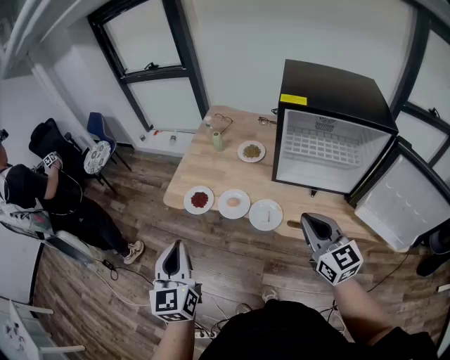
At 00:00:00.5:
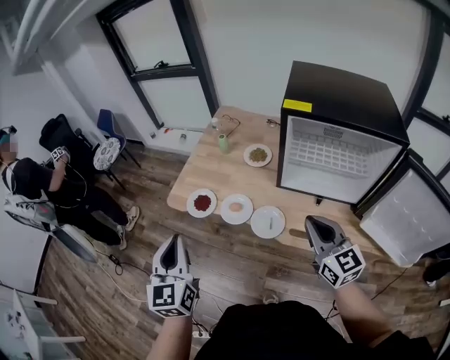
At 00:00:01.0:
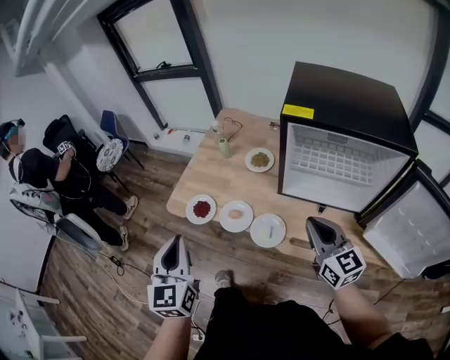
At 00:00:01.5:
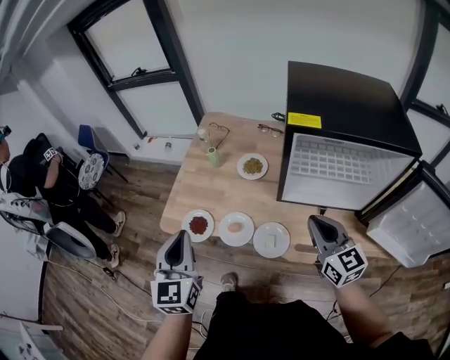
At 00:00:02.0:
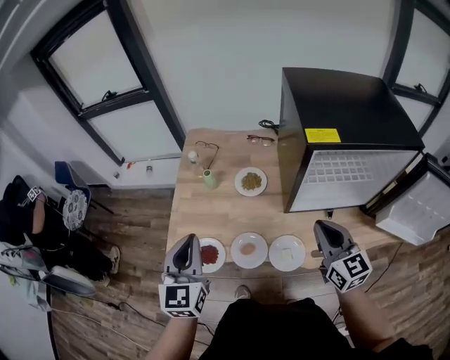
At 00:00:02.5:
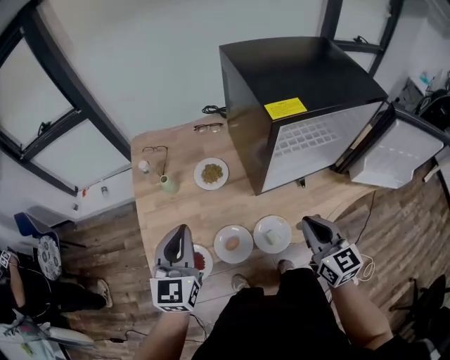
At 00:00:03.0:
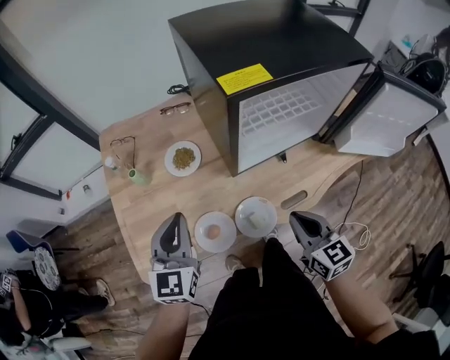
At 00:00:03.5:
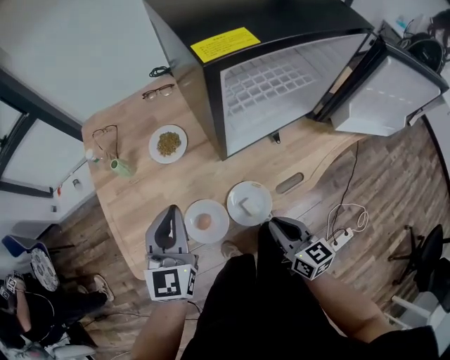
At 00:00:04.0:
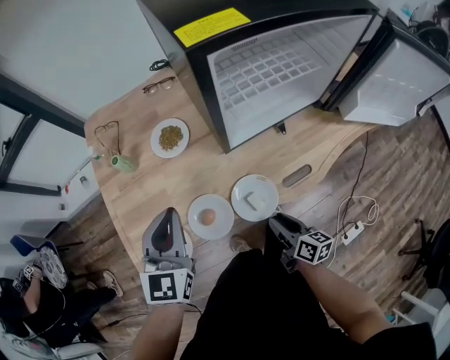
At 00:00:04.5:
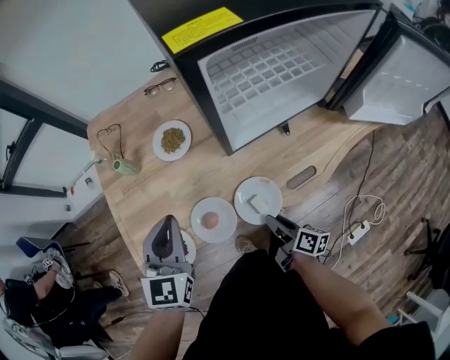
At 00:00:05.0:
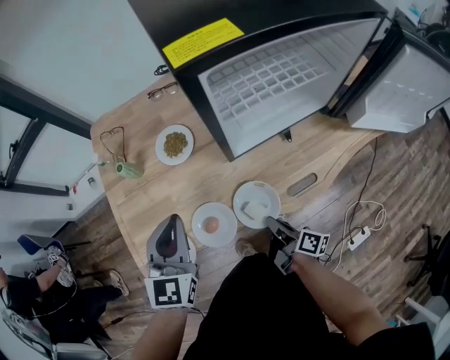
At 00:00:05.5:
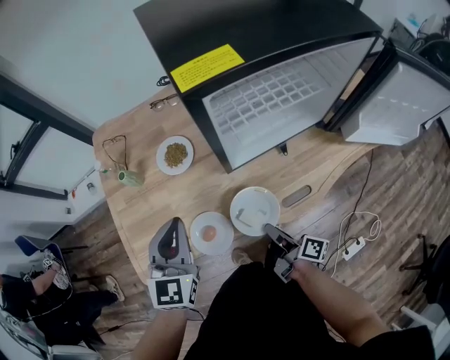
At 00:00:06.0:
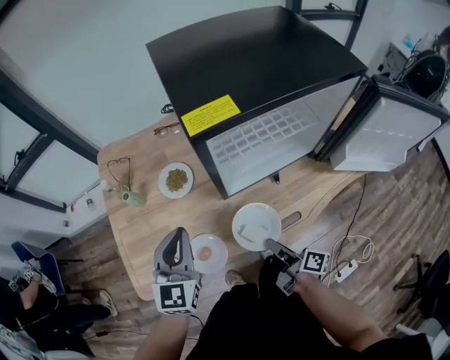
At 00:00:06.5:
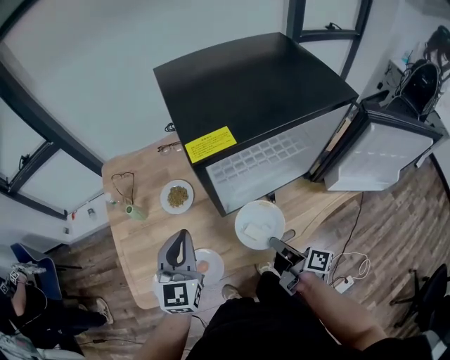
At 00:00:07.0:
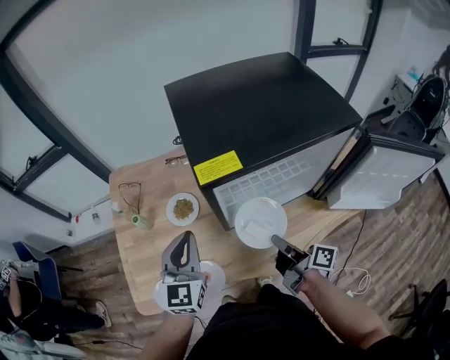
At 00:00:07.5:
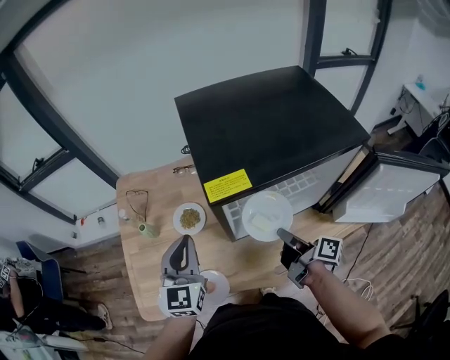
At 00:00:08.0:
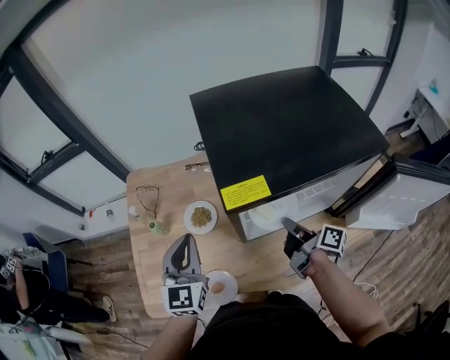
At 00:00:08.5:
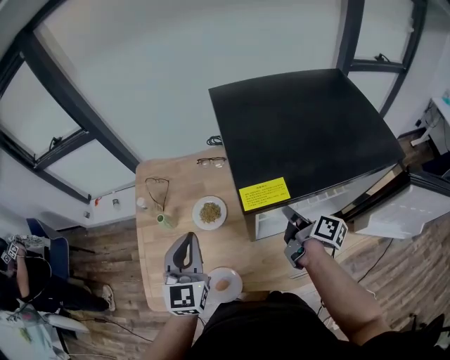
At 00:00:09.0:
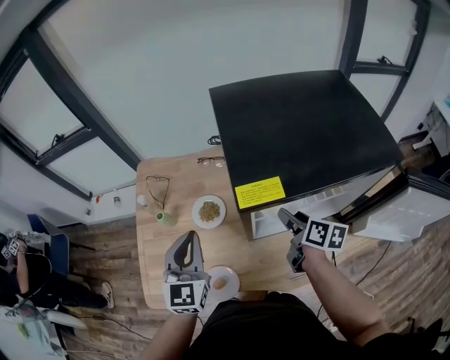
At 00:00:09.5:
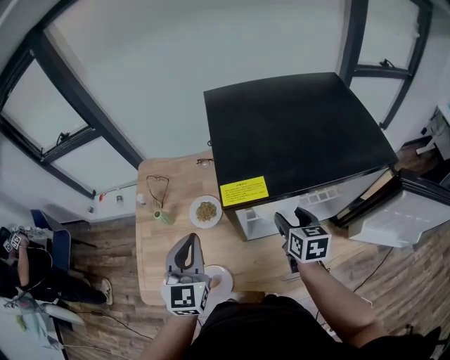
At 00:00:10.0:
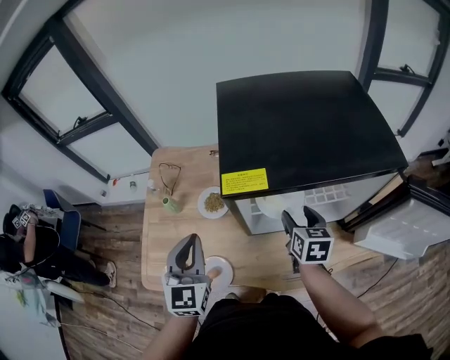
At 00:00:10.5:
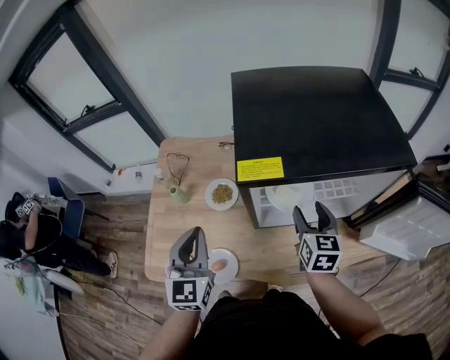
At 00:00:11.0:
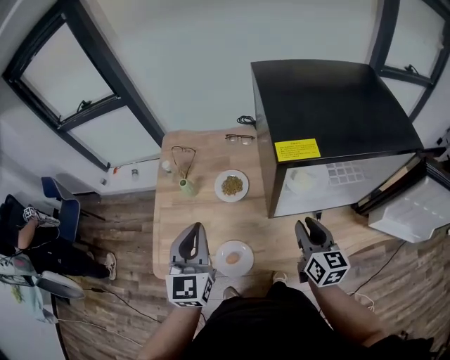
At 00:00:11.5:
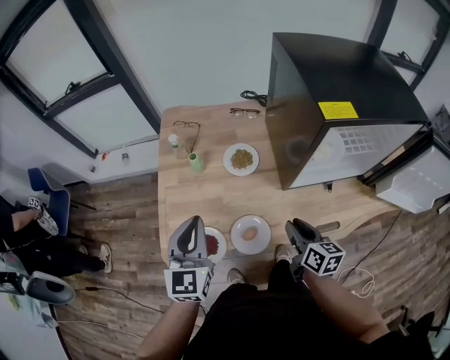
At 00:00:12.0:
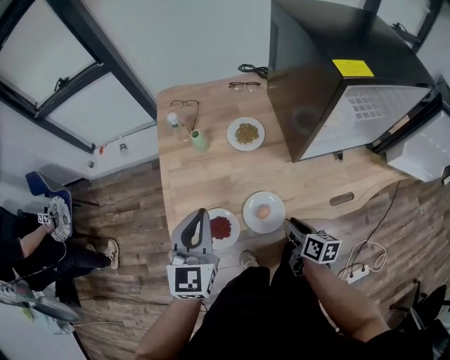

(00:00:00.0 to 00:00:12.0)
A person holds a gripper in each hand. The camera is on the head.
00:00:00.0 - 00:00:02.0: The right gripper shifts some 15 cm forward, and swivels some 20 degrees. The left gripper moves forward, some 30 cm, and swivels about 20 degrees.
00:00:02.0 - 00:00:04.0: The right gripper is displaced downward and backward by some 30 cm, twists approximately 50 degrees clockwise, seen from behind, and opens, while the left gripper travels downward, to the right and forward by roughly 15 cm, and changes its angle by some 30 degrees.
00:00:04.0 - 00:00:06.0: The left gripper shifts by some 5 cm. The right gripper travels upward and forward by some 10 cm, rotates roughly 30 degrees, and closes its fingers.
00:00:06.0 - 00:00:08.0: The right gripper shifts about 25 cm forward and upward, while the left gripper shifts some 10 cm forward and upward.
00:00:08.0 - 00:00:10.0: The left gripper moves backward, about 5 cm; the right gripper rolls counterclockwise, seen from behind, by some 60 degrees, and opens up.
00:00:10.0 - 00:00:12.0: The left gripper goes roughly 20 cm to the left and backward. Meanwhile the right gripper is displaced to the left, backward and downward by some 35 cm, rotates about 30 degrees, and closes its fingers.

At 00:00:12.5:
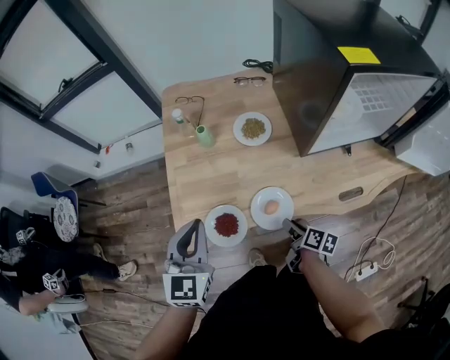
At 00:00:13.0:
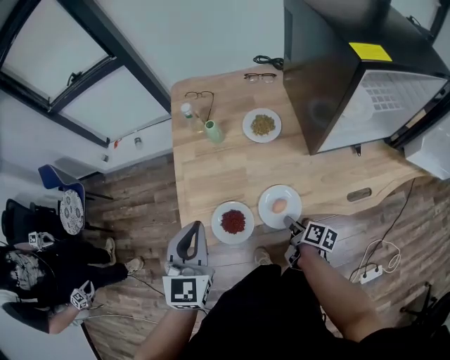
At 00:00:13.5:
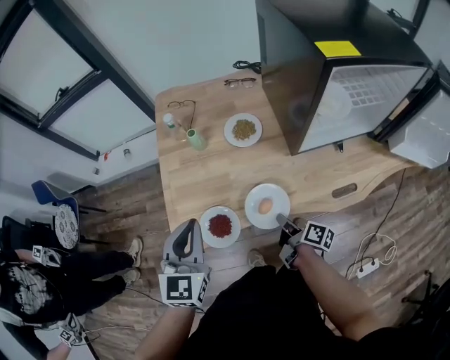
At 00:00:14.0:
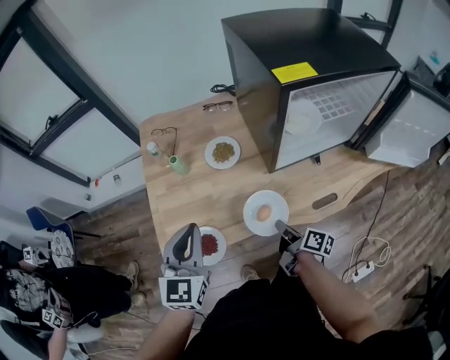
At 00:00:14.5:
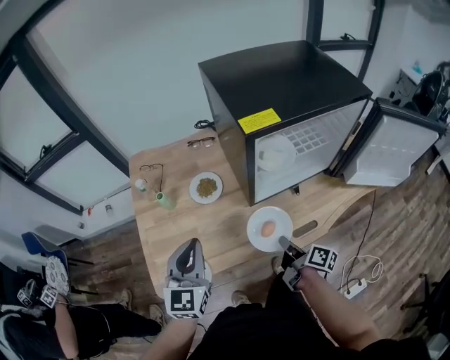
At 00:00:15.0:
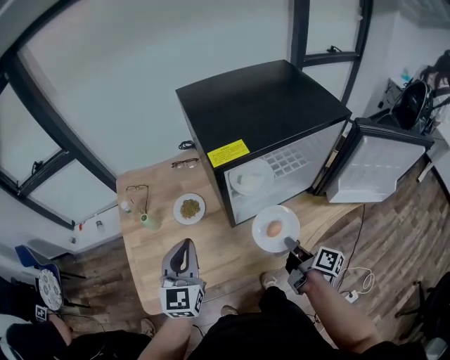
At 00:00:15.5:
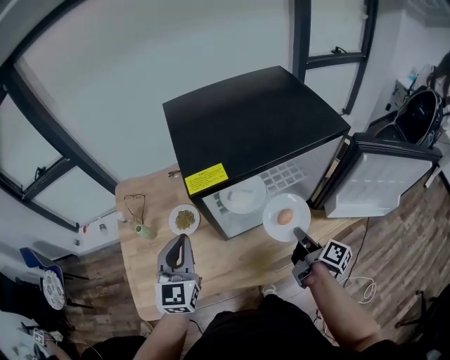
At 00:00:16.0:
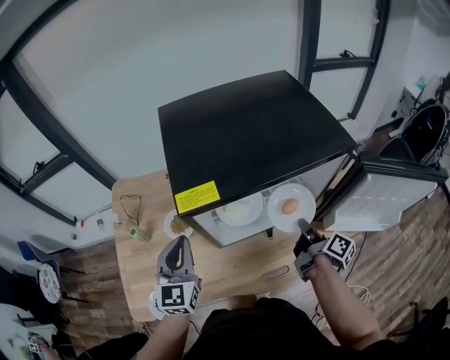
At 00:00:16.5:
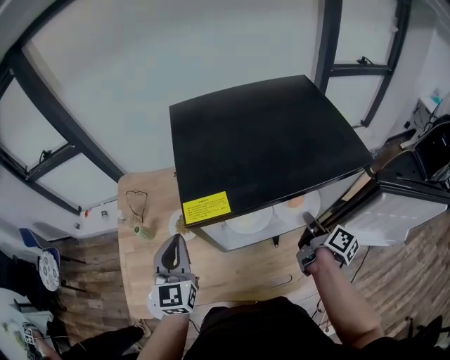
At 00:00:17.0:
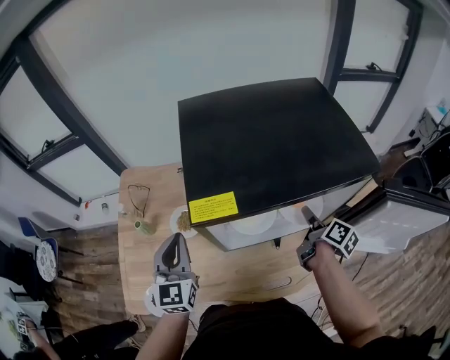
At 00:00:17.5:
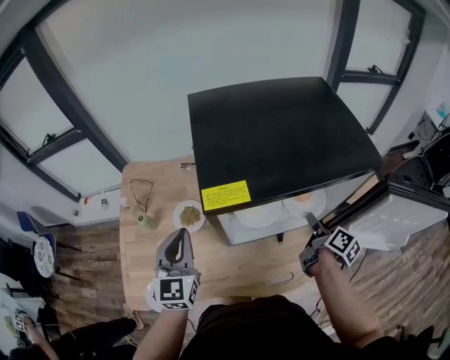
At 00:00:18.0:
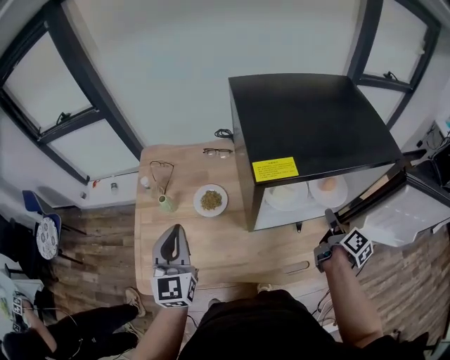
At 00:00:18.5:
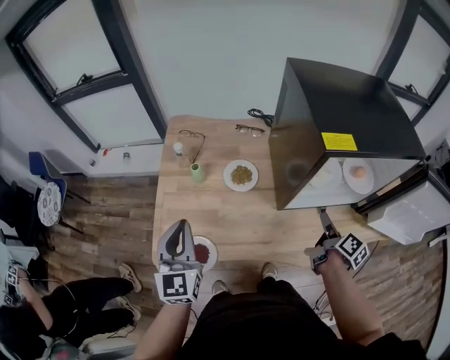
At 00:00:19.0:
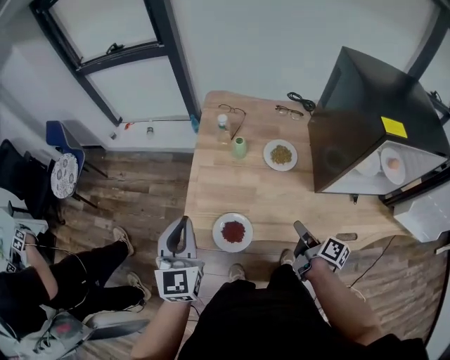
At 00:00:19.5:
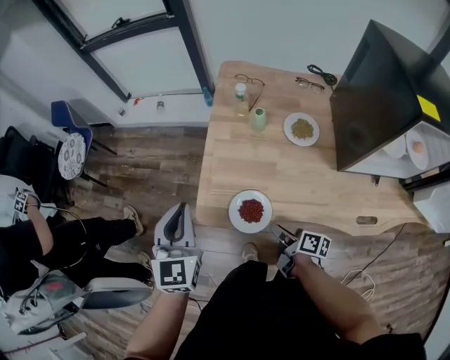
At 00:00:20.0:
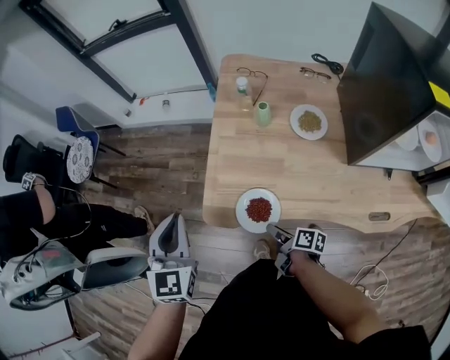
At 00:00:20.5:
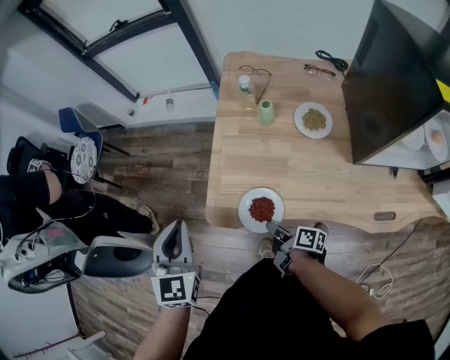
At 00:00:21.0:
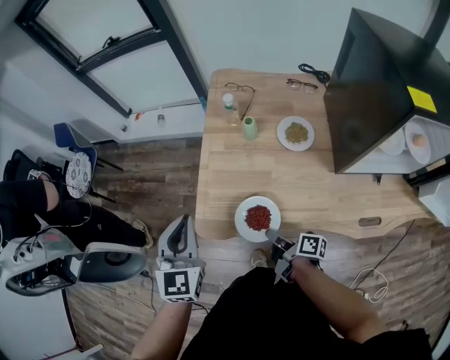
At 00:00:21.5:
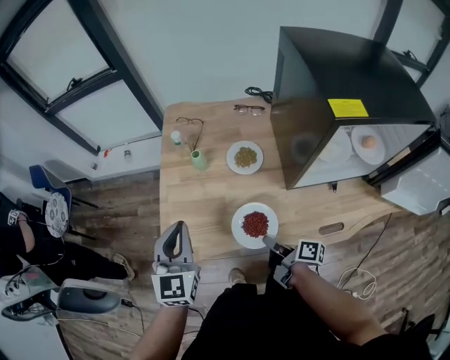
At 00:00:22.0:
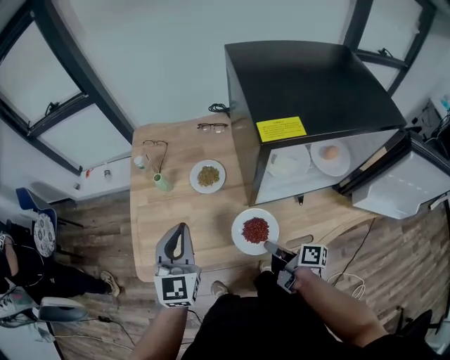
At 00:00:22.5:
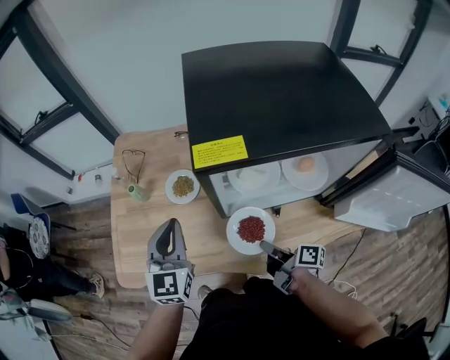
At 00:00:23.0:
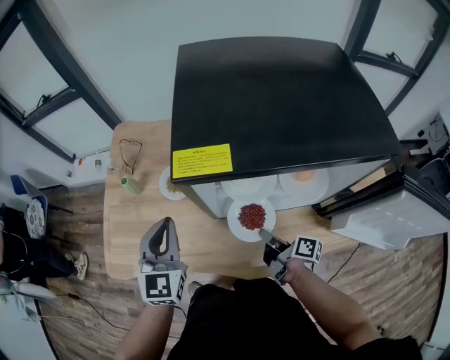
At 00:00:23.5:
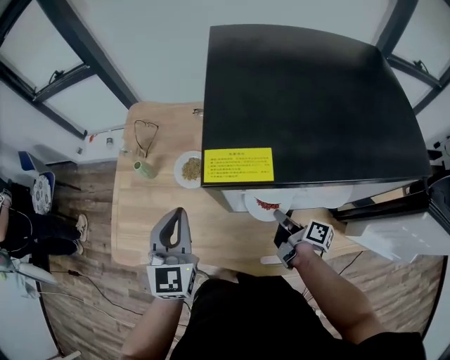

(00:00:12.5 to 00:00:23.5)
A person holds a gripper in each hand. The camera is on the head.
00:00:12.5 - 00:00:14.5: The right gripper goes about 20 cm to the right and upward, swivels roughly 20 degrees, and closes its fingers, while the left gripper shifts some 15 cm to the right.
00:00:14.5 - 00:00:16.0: The right gripper goes some 30 cm to the right, forward and upward. Meanwhile the left gripper heads forward and to the right, covering some 20 cm.
00:00:16.0 - 00:00:18.0: The left gripper is displaced to the left by some 15 cm, while the right gripper moves roughly 10 cm forward and comes back, and opens its fingers.
00:00:18.0 - 00:00:20.0: The left gripper changes place by roughly 35 cm. The right gripper ends up some 60 cm from where it was, and rotates approximately 60 degrees.
00:00:20.0 - 00:00:21.5: The left gripper moves to the right, approximately 20 cm; the right gripper is displaced to the right and upward by about 20 cm, and closes.
00:00:21.5 - 00:00:23.5: Both grippers move to the right, about 30 cm.

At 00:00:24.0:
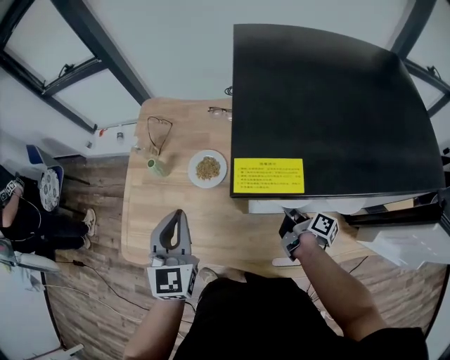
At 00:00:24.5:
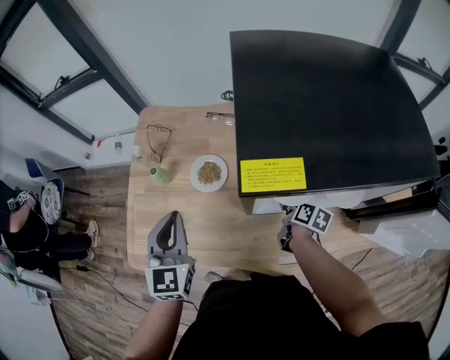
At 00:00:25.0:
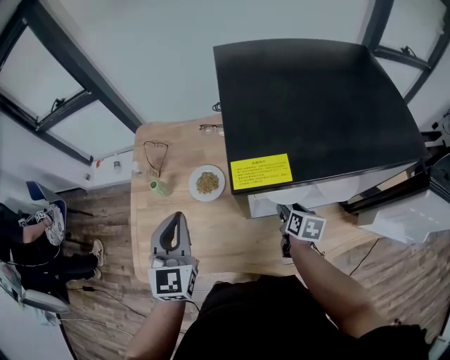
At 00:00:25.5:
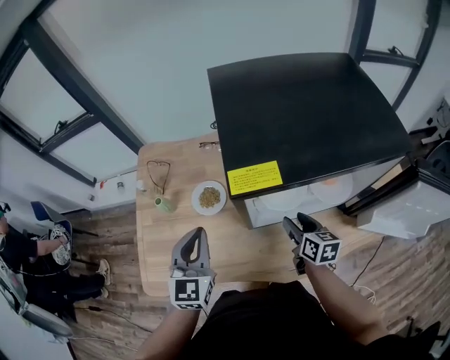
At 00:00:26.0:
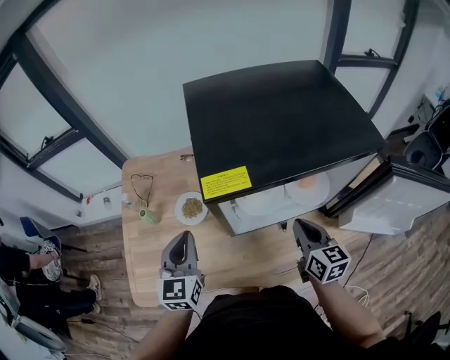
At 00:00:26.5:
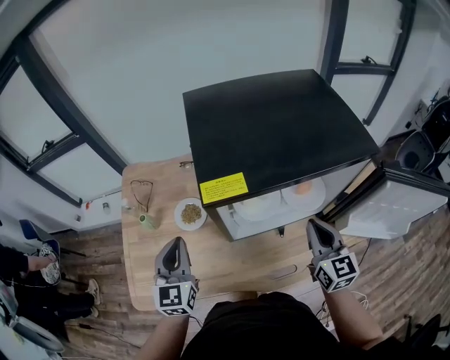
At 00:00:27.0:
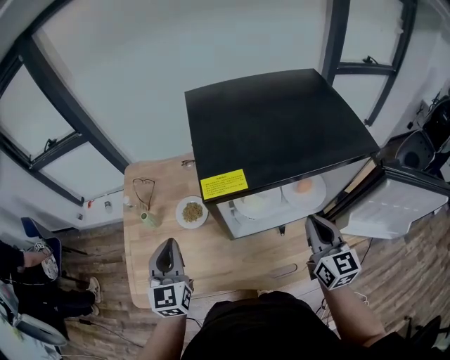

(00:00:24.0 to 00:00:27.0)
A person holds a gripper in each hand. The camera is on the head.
00:00:24.0 - 00:00:25.5: The right gripper travels upward by roughly 10 cm, rolls counterclockwise, seen from behind, by about 50 degrees, and opens up.
00:00:25.5 - 00:00:27.0: The right gripper moves upward and to the right, approximately 20 cm, rotates about 30 degrees, and closes.
